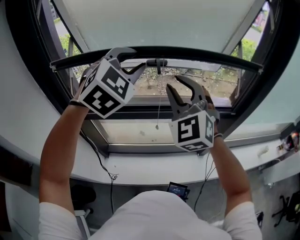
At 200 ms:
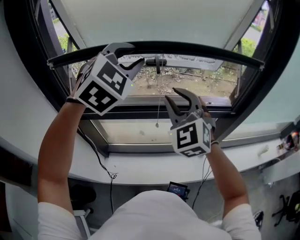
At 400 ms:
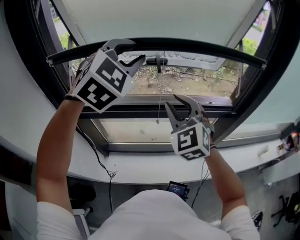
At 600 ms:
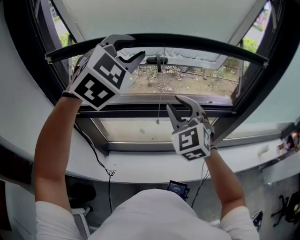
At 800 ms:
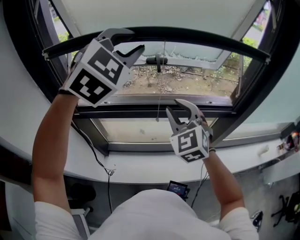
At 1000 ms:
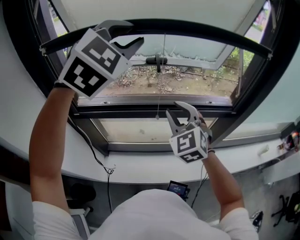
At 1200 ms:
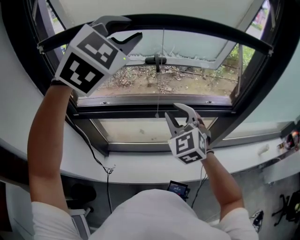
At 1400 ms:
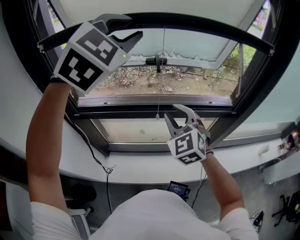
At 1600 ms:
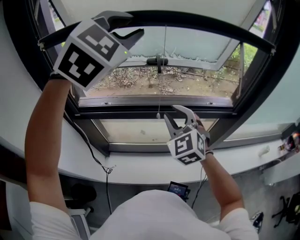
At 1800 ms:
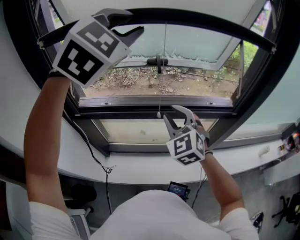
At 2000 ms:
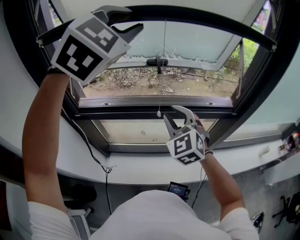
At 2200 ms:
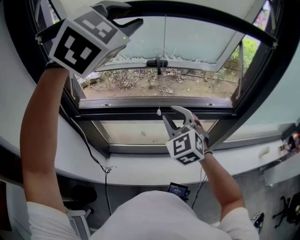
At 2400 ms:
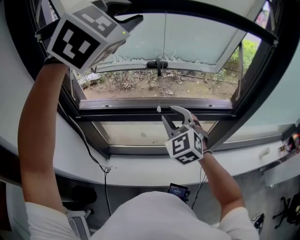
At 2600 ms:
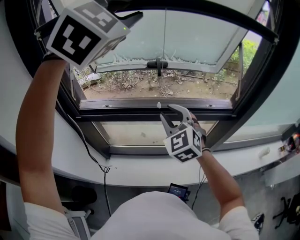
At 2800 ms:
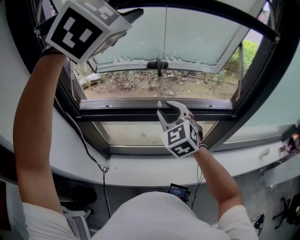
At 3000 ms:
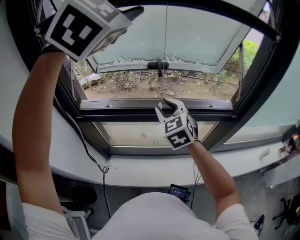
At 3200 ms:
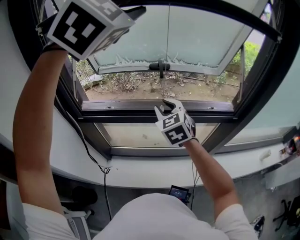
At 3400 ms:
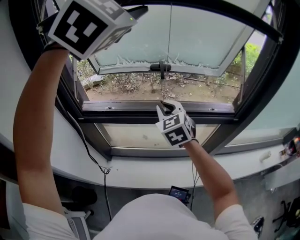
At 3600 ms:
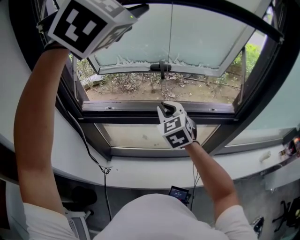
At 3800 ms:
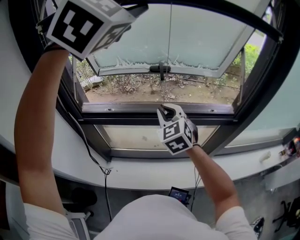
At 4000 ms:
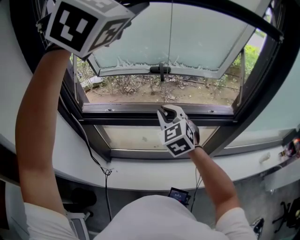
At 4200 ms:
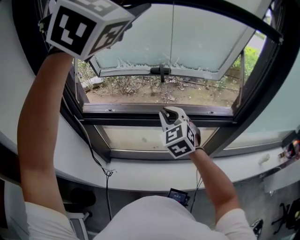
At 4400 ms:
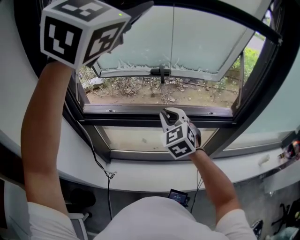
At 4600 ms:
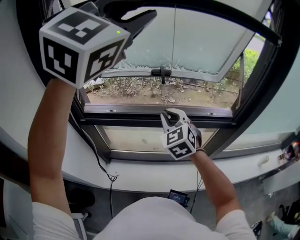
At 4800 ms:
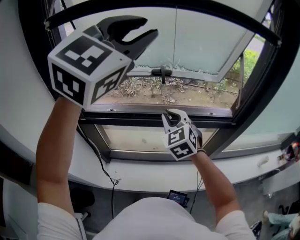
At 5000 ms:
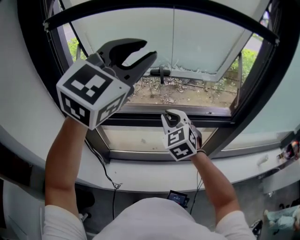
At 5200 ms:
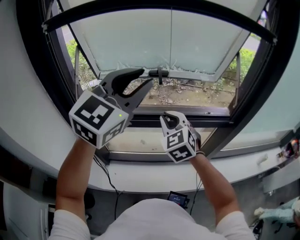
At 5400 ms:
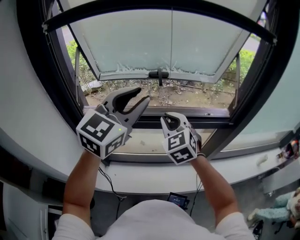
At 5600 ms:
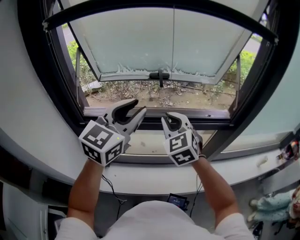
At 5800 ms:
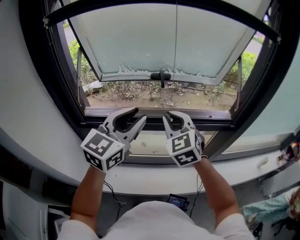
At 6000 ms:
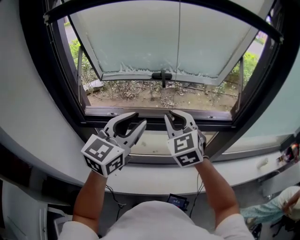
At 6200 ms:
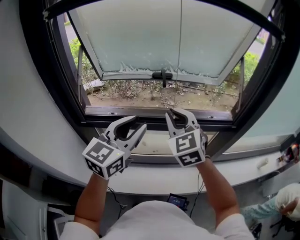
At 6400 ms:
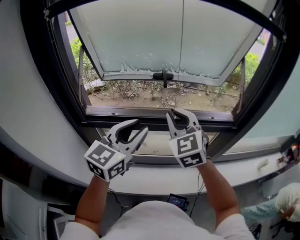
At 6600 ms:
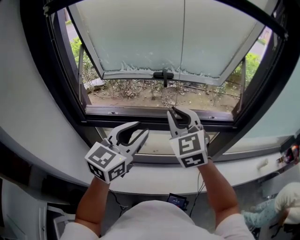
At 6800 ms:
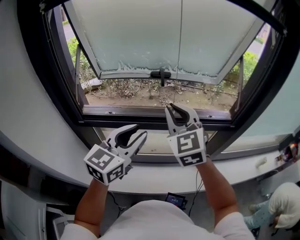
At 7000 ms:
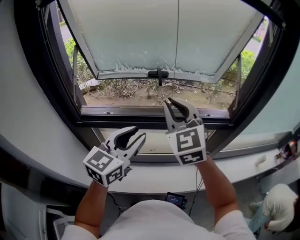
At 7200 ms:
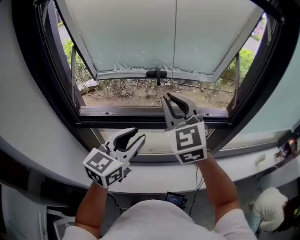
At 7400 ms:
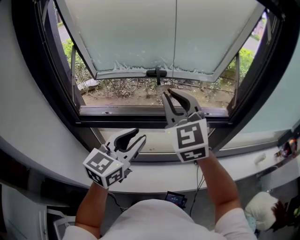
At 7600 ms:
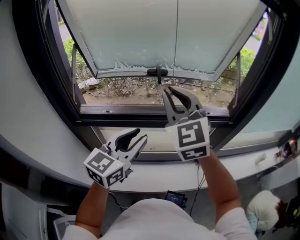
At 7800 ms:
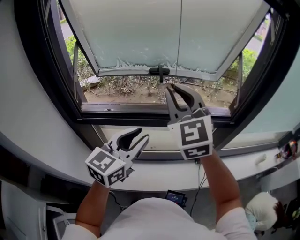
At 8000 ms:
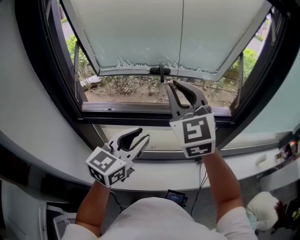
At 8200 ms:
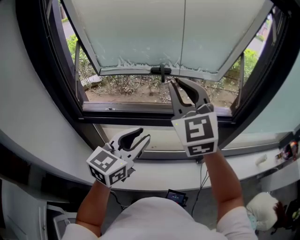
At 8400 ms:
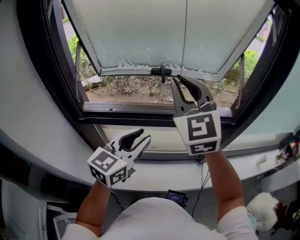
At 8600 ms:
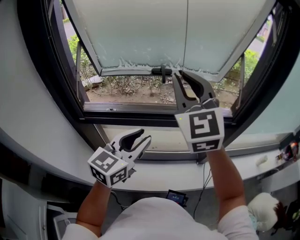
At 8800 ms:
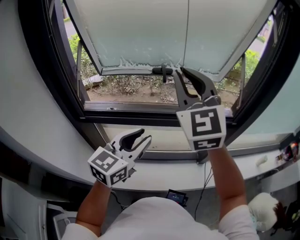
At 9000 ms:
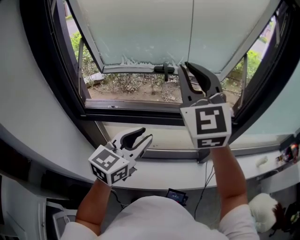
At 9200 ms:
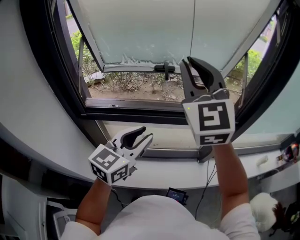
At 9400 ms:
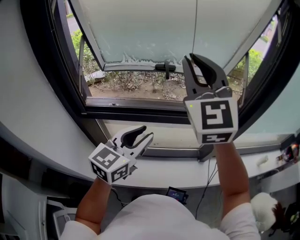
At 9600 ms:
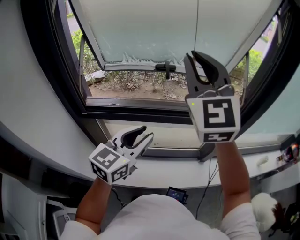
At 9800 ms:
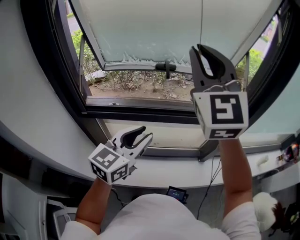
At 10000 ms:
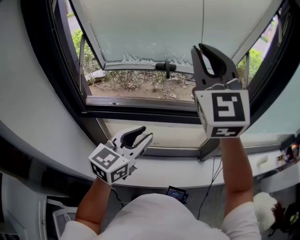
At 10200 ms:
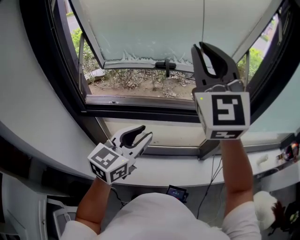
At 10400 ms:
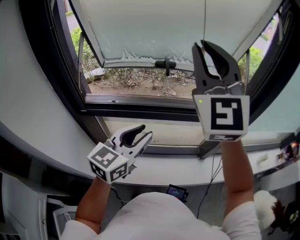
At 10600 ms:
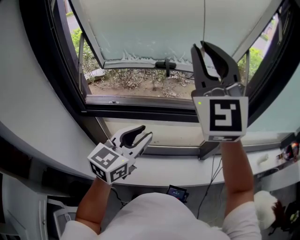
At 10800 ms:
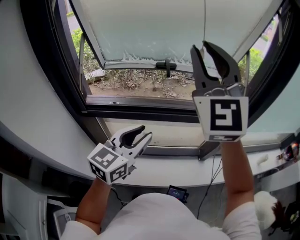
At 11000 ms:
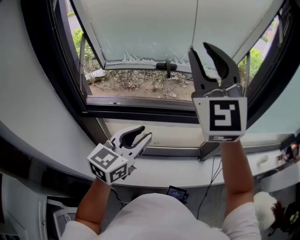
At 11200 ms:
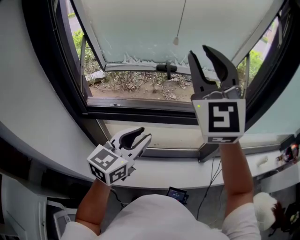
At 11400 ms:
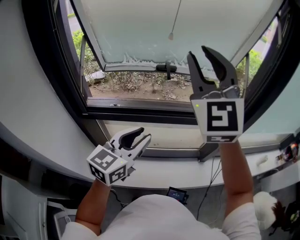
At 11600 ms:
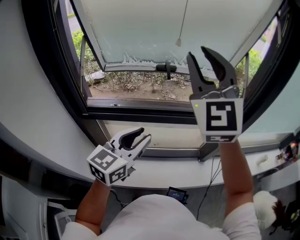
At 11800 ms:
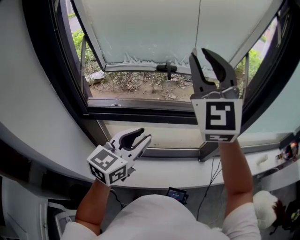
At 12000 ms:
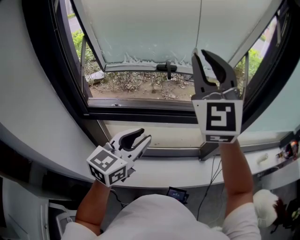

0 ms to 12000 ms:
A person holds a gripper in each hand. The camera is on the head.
0 ms to 1600 ms: The left gripper moves upward, roughly 10 cm; the right gripper goes roughly 15 cm downward.
1600 ms to 3000 ms: The right gripper shifts by roughly 5 cm. The left gripper travels upward by some 10 cm.
3000 ms to 4400 ms: The left gripper changes place by roughly 5 cm.
4400 ms to 6000 ms: The right gripper shifts by approximately 5 cm. The left gripper shifts roughly 30 cm downward, and rolls counterclockwise, seen from behind, by approximately 40 degrees.
6000 ms to 7600 ms: The right gripper travels upward by approximately 10 cm. Meanwhile the left gripper travels downward by approximately 5 cm.
7600 ms to 9000 ms: The right gripper shifts about 10 cm upward.
9000 ms to 10400 ms: The right gripper goes about 5 cm upward.
10400 ms to 12000 ms: The grippers make only small movements.

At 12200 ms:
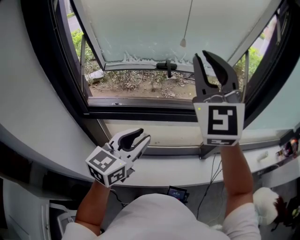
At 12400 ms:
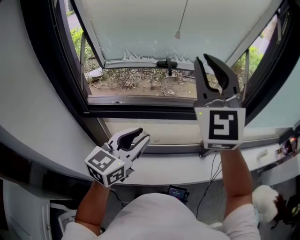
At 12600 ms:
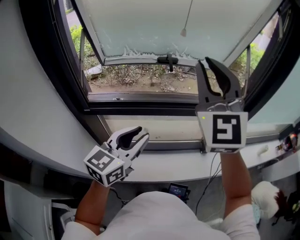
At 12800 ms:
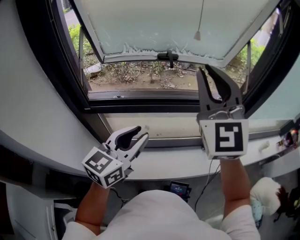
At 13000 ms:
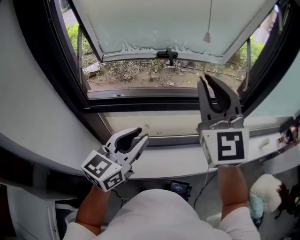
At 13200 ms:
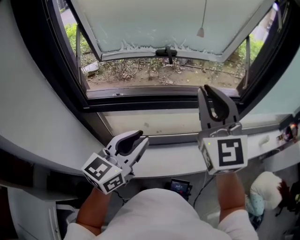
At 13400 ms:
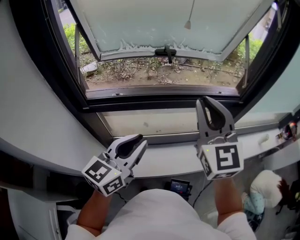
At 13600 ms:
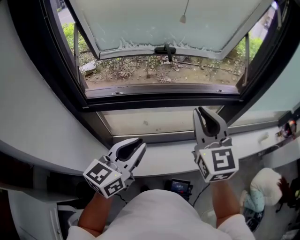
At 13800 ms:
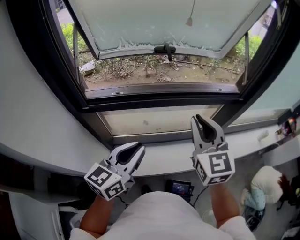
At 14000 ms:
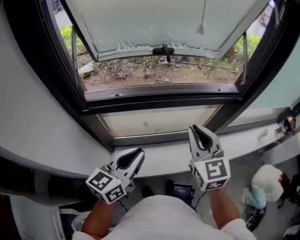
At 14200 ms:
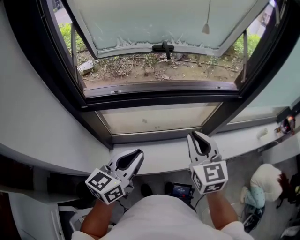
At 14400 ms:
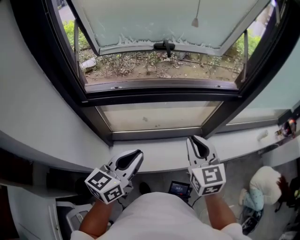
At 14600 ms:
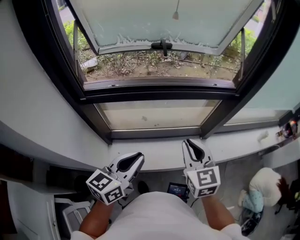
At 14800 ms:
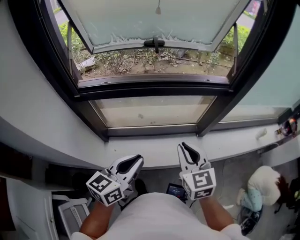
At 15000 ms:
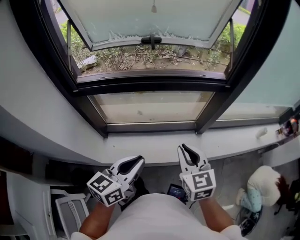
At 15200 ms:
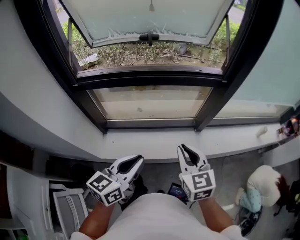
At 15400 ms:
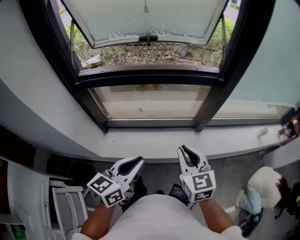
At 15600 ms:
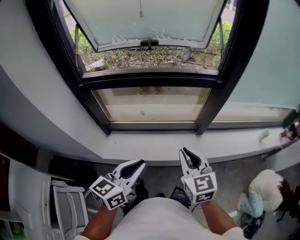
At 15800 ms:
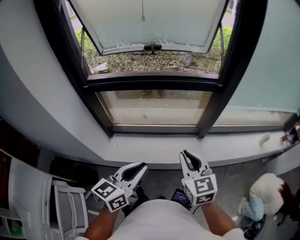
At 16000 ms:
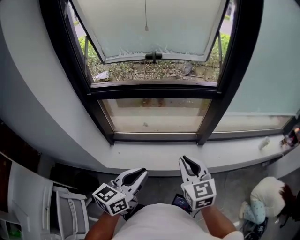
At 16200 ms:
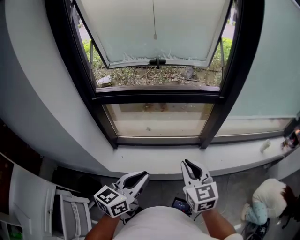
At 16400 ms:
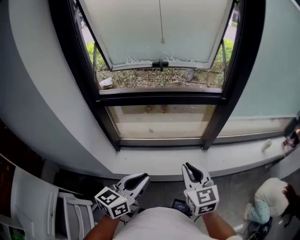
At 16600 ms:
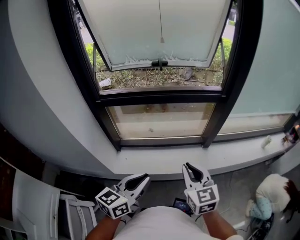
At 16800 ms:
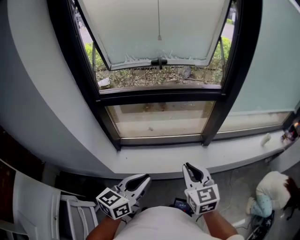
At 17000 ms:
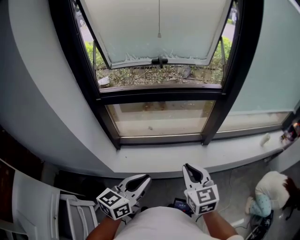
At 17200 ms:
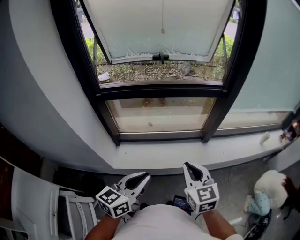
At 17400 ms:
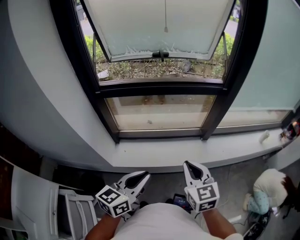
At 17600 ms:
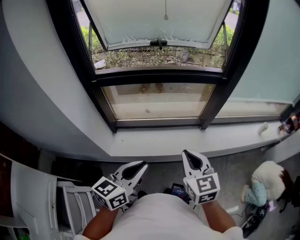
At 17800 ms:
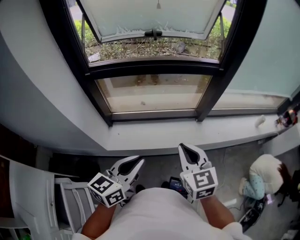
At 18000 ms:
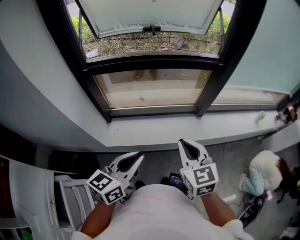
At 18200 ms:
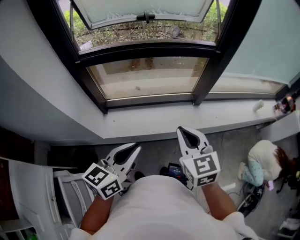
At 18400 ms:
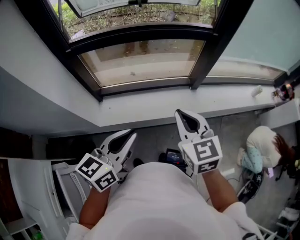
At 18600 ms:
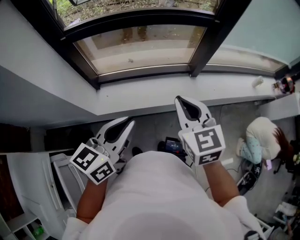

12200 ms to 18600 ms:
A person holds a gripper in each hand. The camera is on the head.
12200 ms to 13800 ms: The left gripper goes approximately 10 cm backward and downward. Meanwhile the right gripper travels downward by some 25 cm, and turns by roughly 40 degrees.
13800 ms to 15400 ms: The left gripper shifts about 25 cm to the right and backward. The right gripper is displaced to the right, backward and downward by roughly 25 cm.
15400 ms to 17000 ms: The grippers both shift backward and to the left by some 10 cm.
17000 ms to 18600 ms: The grippers move only a little.

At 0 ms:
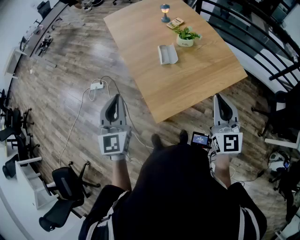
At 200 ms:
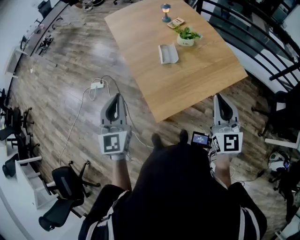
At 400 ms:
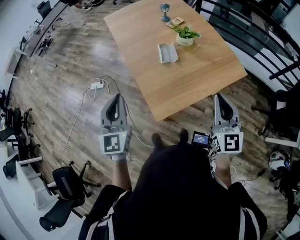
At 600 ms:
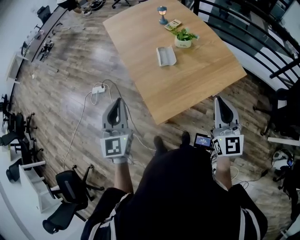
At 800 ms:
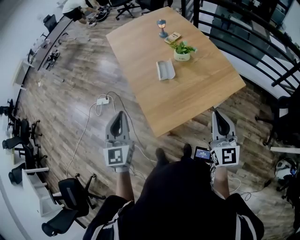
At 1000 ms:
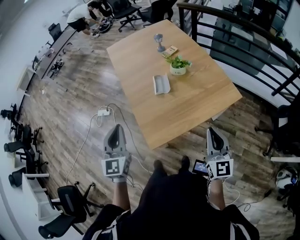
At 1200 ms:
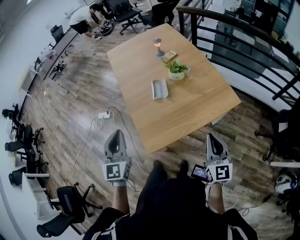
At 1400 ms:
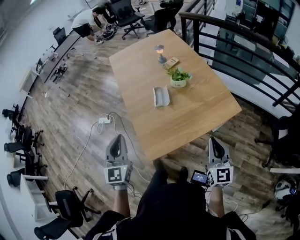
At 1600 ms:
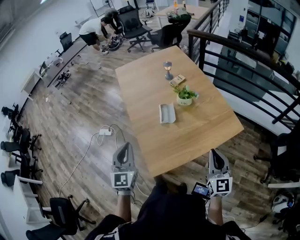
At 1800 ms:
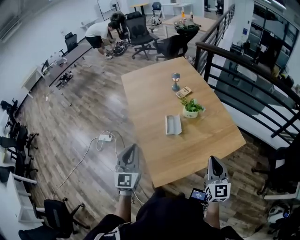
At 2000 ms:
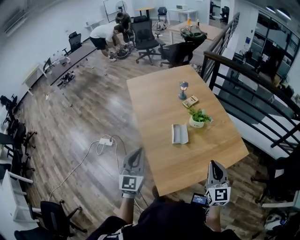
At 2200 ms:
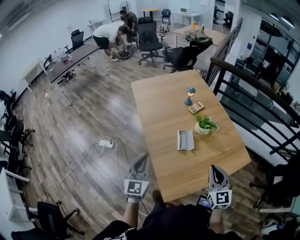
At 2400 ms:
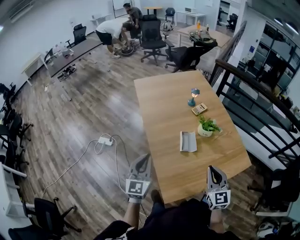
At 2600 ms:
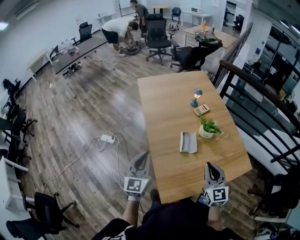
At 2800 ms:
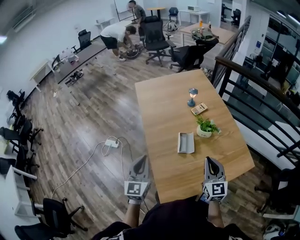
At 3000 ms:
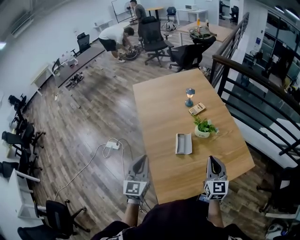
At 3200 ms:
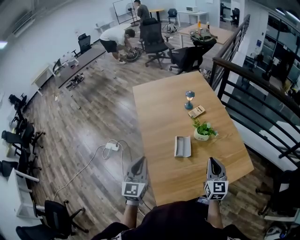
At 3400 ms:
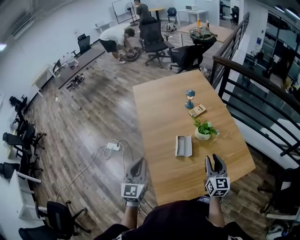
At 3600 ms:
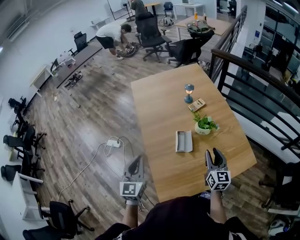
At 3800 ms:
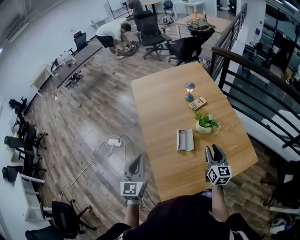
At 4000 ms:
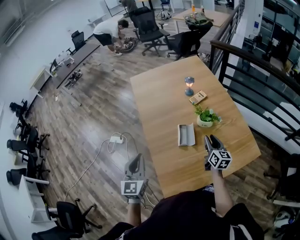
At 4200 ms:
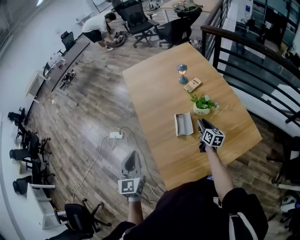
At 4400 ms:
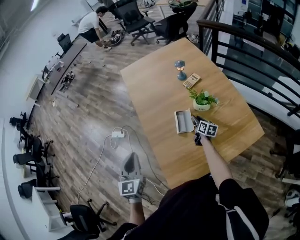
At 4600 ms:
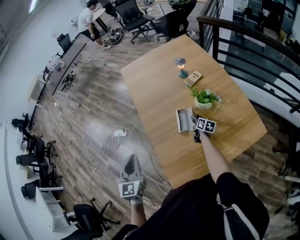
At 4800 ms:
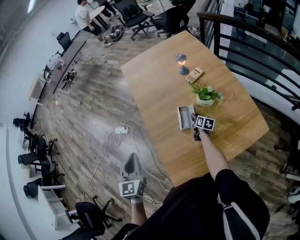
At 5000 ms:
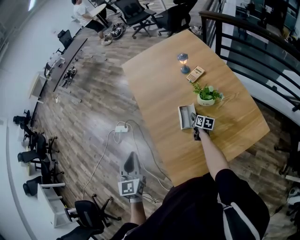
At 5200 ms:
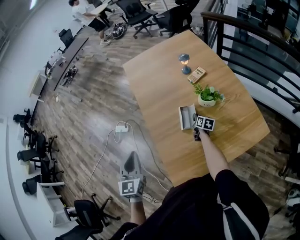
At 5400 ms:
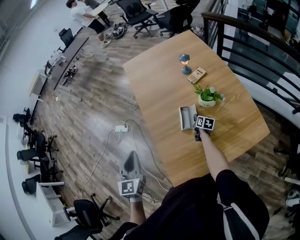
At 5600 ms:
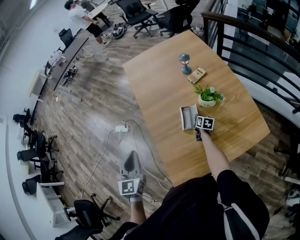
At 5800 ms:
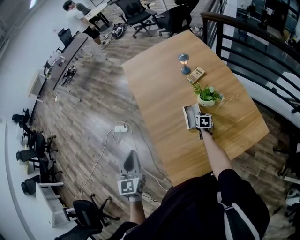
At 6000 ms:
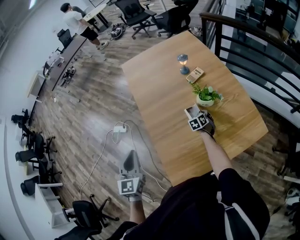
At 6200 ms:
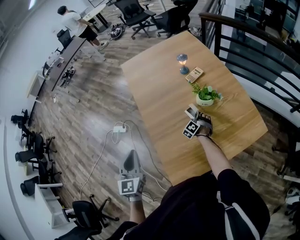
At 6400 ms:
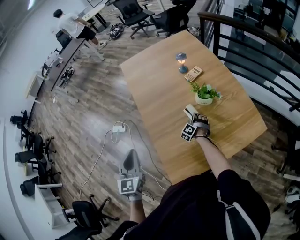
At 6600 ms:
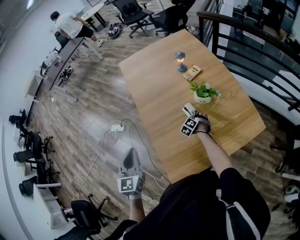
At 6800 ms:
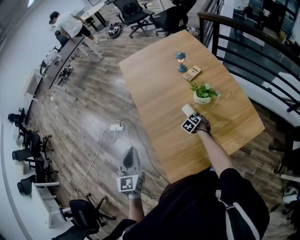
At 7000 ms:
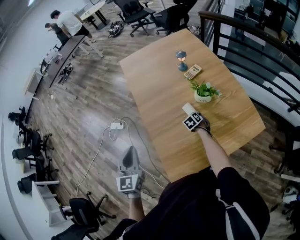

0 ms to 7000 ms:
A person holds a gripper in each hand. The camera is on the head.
0 ms to 1400 ms: The left gripper is displaced to the right by some 10 cm, while the right gripper moves to the right and downward, about 15 cm.
1400 ms to 2800 ms: The right gripper is displaced forward and to the left by about 25 cm. Meanwhile the left gripper goes approximately 15 cm forward and to the left.
2800 ms to 4200 ms: The right gripper shifts approximately 25 cm downward and forward, changes its angle by roughly 40 degrees, and opens its fingers.
4200 ms to 5600 ms: The right gripper is displaced downward by roughly 15 cm, swivels approximately 20 degrees, and closes up.
5600 ms to 7000 ms: The right gripper rotates around the line of its fingers by roughly 50 degrees, counterclockwise from behind, and opens, then closes again.
